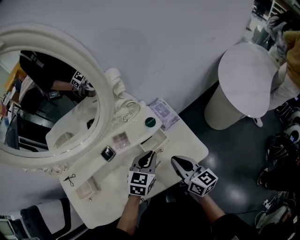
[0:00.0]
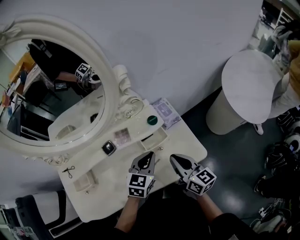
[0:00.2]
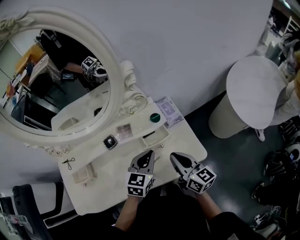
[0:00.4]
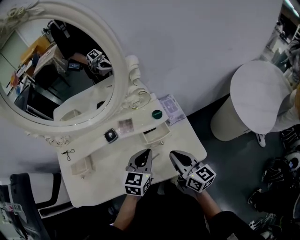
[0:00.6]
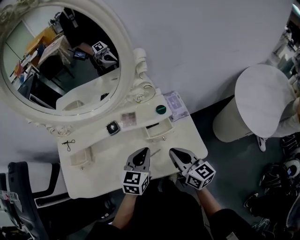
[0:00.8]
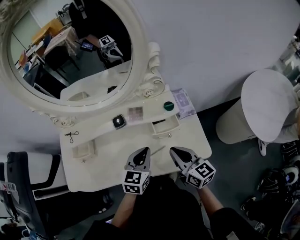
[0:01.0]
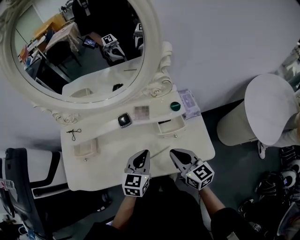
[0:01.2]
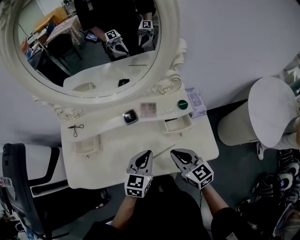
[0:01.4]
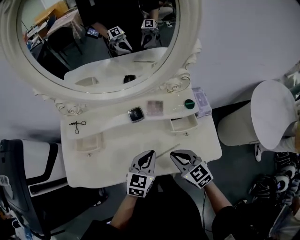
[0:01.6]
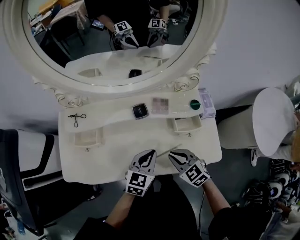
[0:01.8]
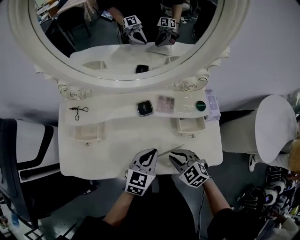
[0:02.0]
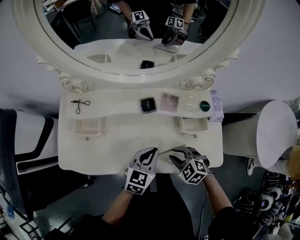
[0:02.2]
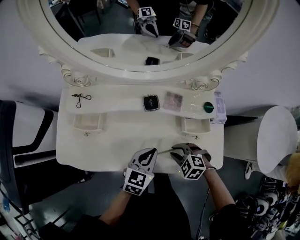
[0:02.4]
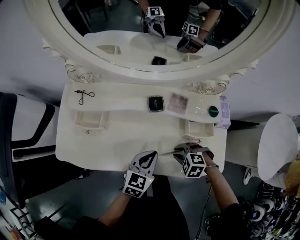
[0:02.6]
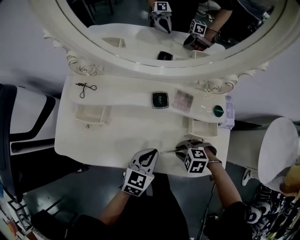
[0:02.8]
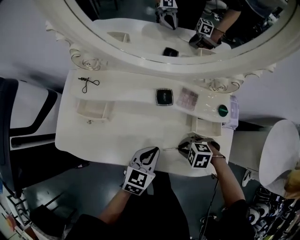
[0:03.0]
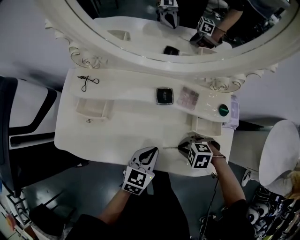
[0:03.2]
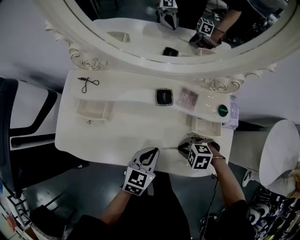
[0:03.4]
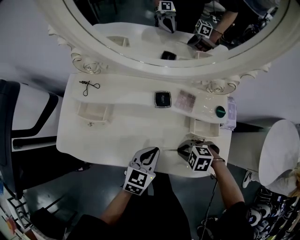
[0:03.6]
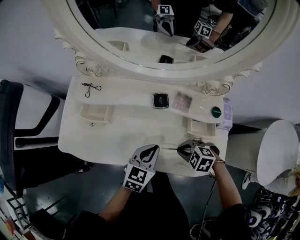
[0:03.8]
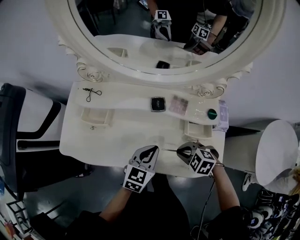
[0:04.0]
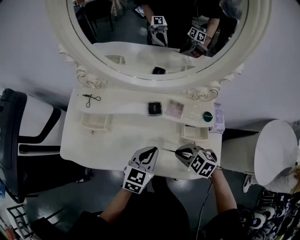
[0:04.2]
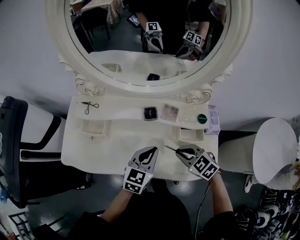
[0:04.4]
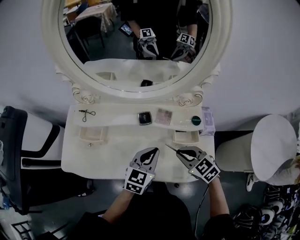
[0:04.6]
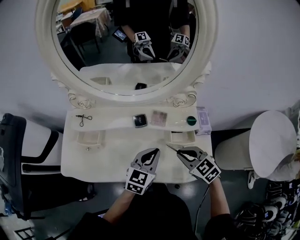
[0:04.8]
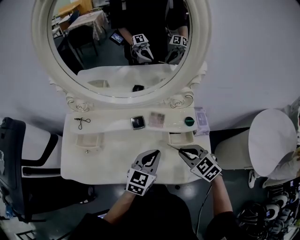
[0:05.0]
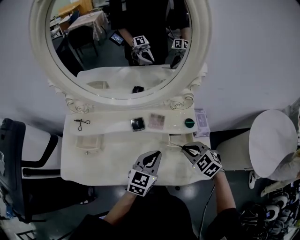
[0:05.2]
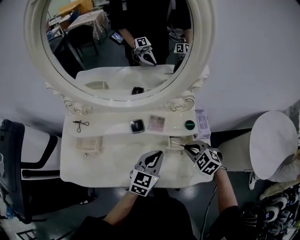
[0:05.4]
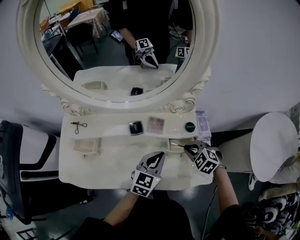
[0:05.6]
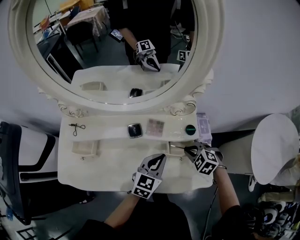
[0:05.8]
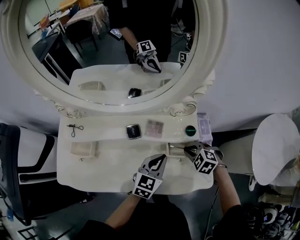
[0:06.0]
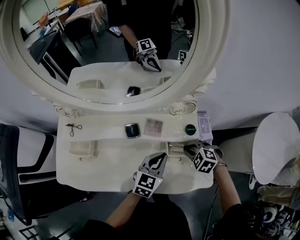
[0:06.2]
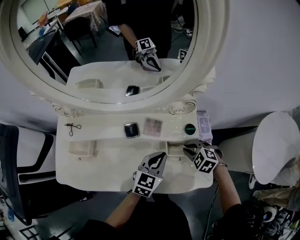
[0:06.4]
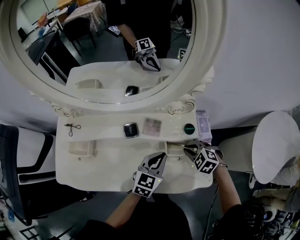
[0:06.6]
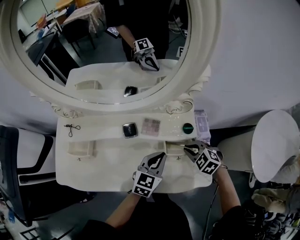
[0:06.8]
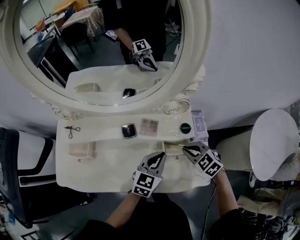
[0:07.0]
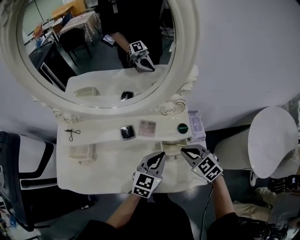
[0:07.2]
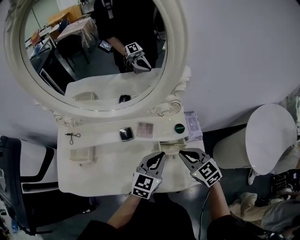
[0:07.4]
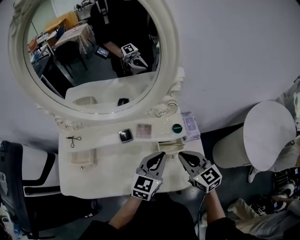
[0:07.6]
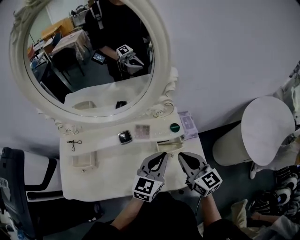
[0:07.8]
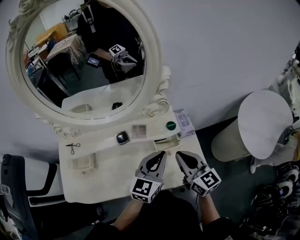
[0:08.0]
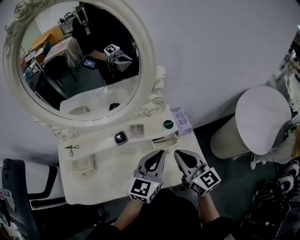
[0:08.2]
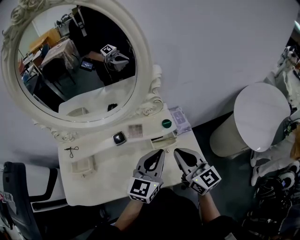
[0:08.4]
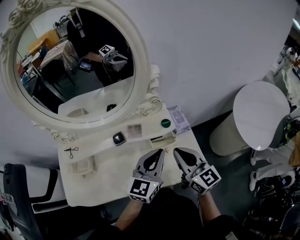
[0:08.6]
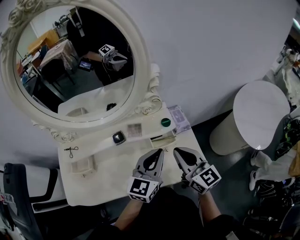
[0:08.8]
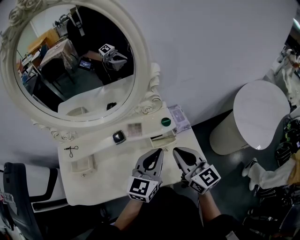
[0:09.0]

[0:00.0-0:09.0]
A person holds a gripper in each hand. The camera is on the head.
0:00.0 to 0:01.6: The left gripper shifts by approximately 15 cm, and swivels about 20 degrees, while the right gripper changes place by about 15 cm, and rotates some 50 degrees.
0:01.6 to 0:03.0: The right gripper travels downward by approximately 15 cm, and angles its fingers downward, by about 40 degrees, while the left gripper moves downward, approximately 5 cm.
0:03.0 to 0:04.4: The left gripper shifts about 10 cm upward, while the right gripper shifts approximately 15 cm upward, and swivels roughly 40 degrees.
0:04.4 to 0:06.0: The right gripper heads to the right, forward and downward, covering approximately 15 cm, and turns by some 20 degrees. Meanwhile the left gripper travels to the right by approximately 10 cm.
0:06.0 to 0:07.6: The right gripper shifts approximately 15 cm upward and backward, and tips its fingers upward by approximately 40 degrees; the left gripper heads upward, covering some 10 cm.
0:07.6 to 0:09.0: Both grippers travel together upward, roughly 5 cm. The right gripper rotates approximately 20 degrees.

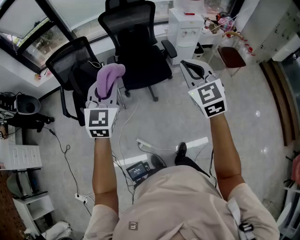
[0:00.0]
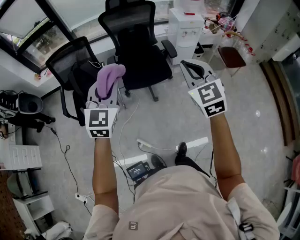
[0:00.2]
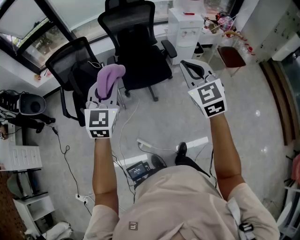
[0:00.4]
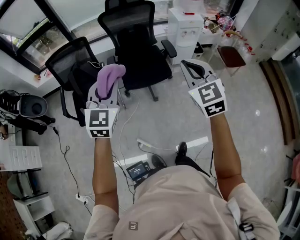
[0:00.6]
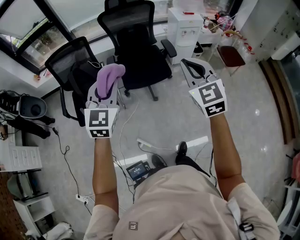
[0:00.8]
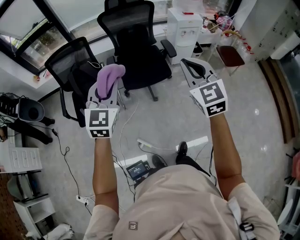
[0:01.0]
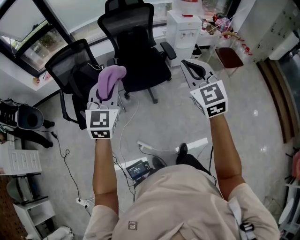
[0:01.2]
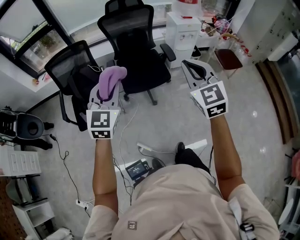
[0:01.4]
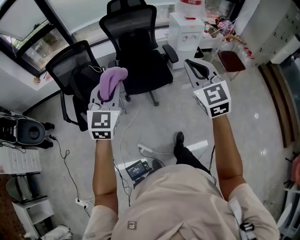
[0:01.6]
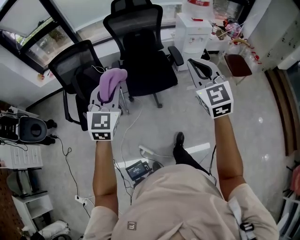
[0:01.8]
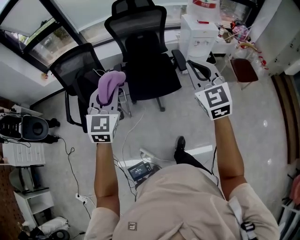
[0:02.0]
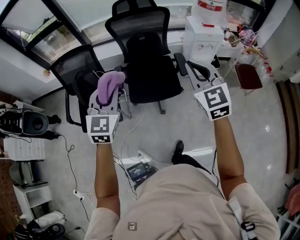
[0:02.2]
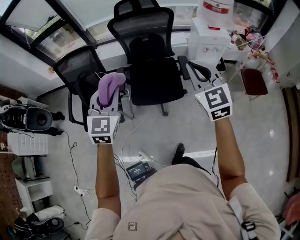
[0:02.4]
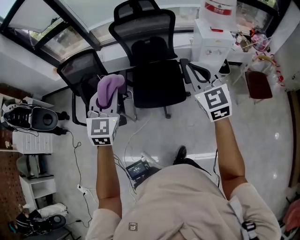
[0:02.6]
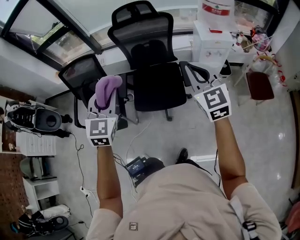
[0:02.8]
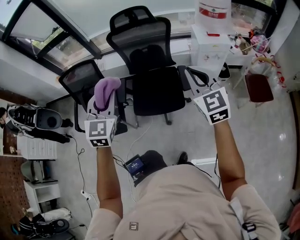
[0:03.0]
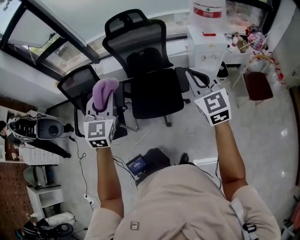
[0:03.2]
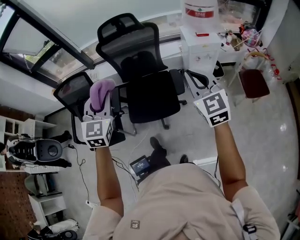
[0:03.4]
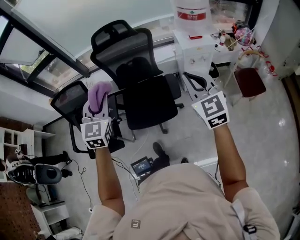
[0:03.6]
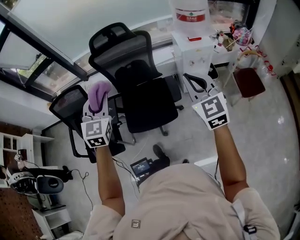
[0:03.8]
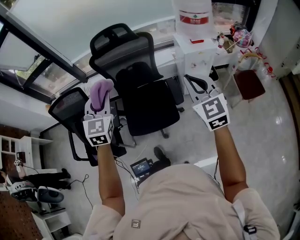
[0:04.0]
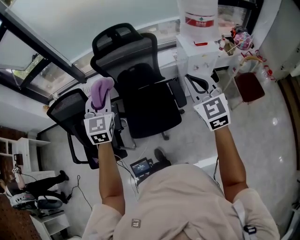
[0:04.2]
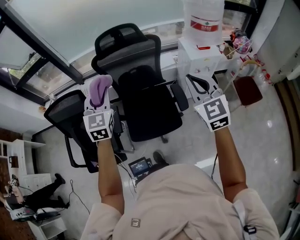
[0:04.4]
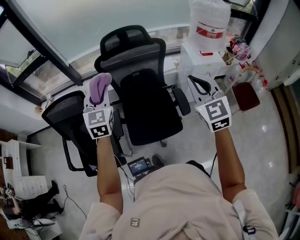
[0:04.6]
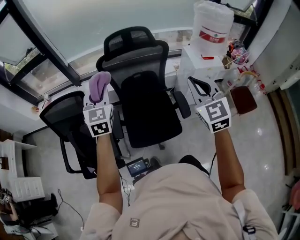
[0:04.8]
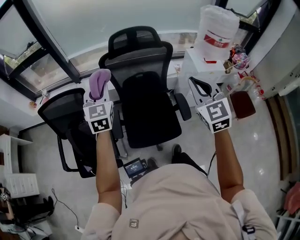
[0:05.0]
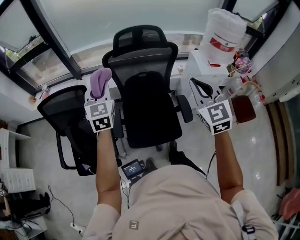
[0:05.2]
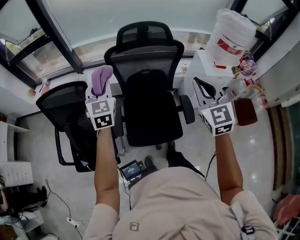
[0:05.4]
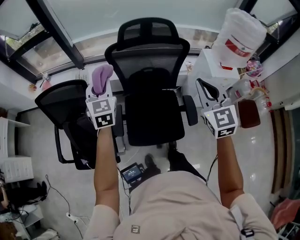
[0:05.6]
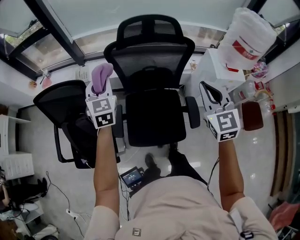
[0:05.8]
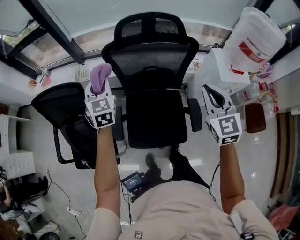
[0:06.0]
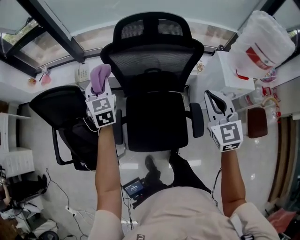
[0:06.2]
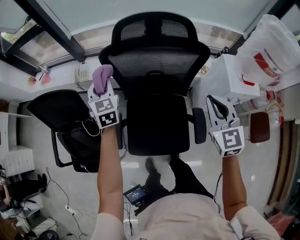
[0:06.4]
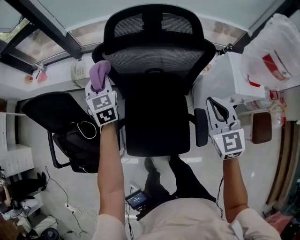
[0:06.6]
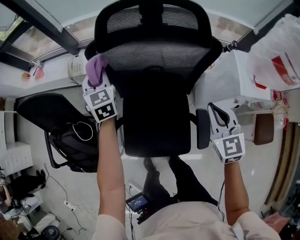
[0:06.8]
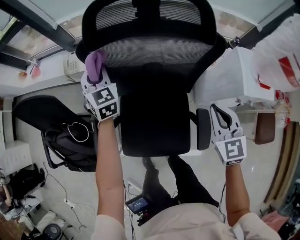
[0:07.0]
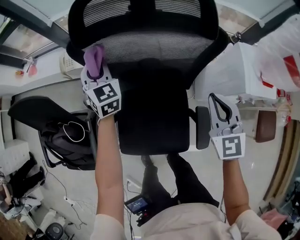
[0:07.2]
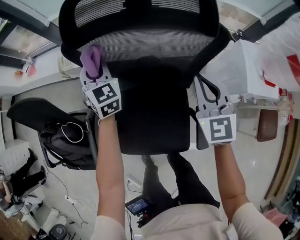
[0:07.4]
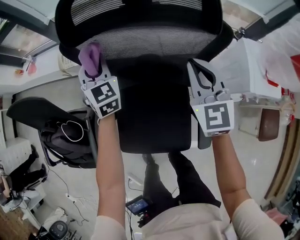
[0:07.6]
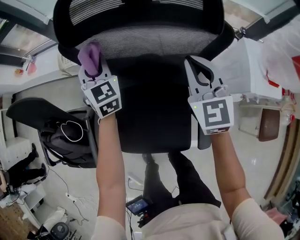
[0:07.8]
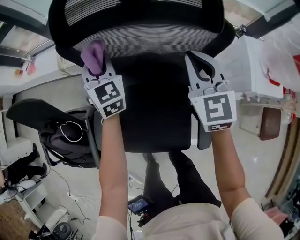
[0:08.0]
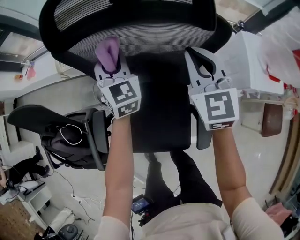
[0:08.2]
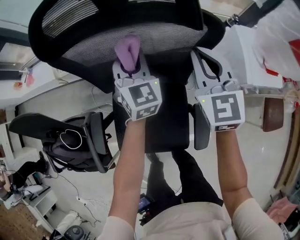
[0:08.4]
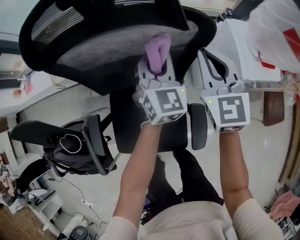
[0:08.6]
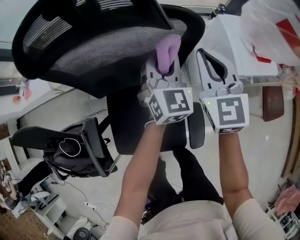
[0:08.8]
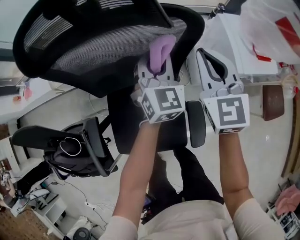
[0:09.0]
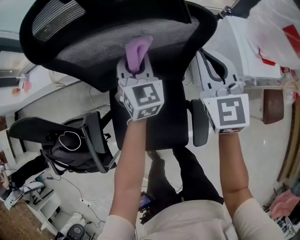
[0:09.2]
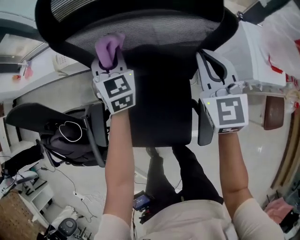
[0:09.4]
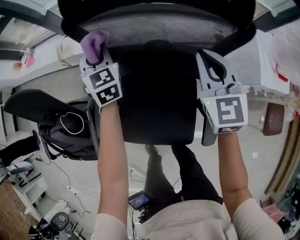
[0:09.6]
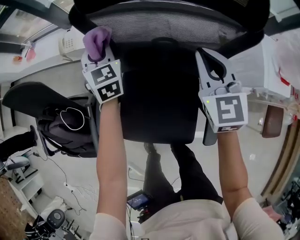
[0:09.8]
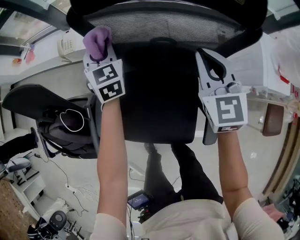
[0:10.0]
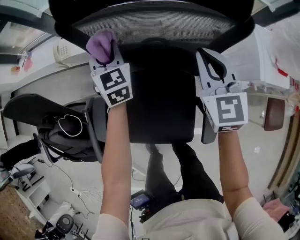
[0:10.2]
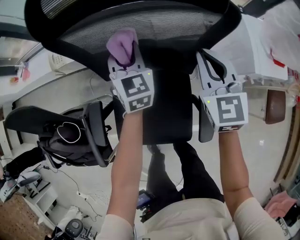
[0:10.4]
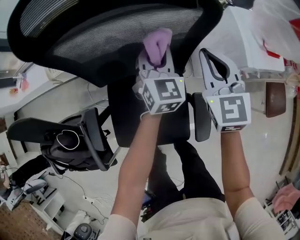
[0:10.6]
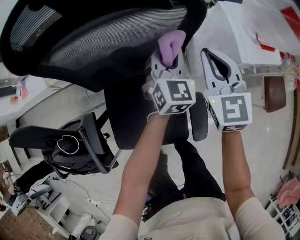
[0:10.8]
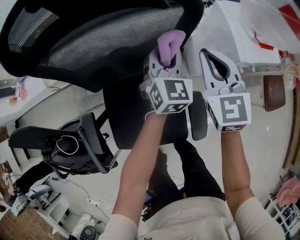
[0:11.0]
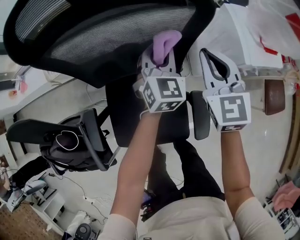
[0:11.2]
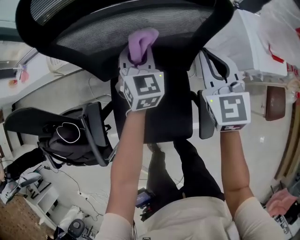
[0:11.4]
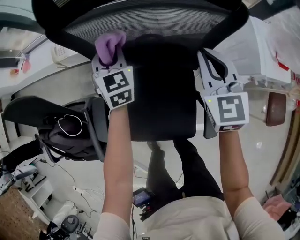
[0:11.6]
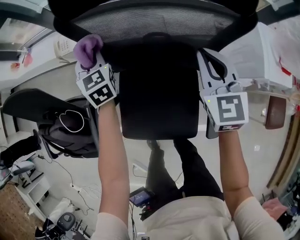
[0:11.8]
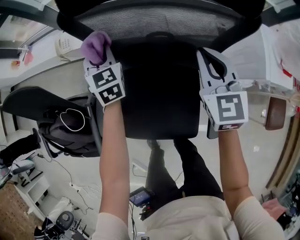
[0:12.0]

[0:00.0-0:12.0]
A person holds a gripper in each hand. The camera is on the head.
0:00.0 to 0:01.6: The grippers stay close to where they were, moving slightly.
0:01.6 to 0:03.0: The two grippers go roughly 30 cm forward and to the right.
0:03.0 to 0:04.4: The right gripper is displaced forward by about 15 cm. The left gripper travels forward by about 25 cm.
0:04.4 to 0:06.0: The right gripper is displaced forward and downward by approximately 25 cm. The left gripper is displaced forward, downward and to the left by approximately 30 cm.
0:06.0 to 0:07.6: The right gripper goes roughly 30 cm forward and downward. The left gripper shifts roughly 25 cm downward, forward and to the right.
0:07.6 to 0:09.0: The right gripper moves to the right, about 15 cm; the left gripper shifts some 35 cm to the right, and rotates some 30 degrees.
0:09.0 to 0:10.4: The left gripper goes about 15 cm to the left. The right gripper travels to the left by about 10 cm.
0:10.4 to 0:12.0: The left gripper changes place by roughly 20 cm, while the right gripper moves approximately 10 cm.

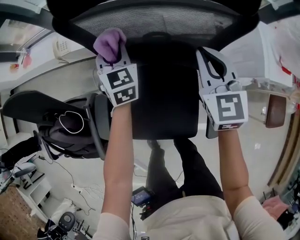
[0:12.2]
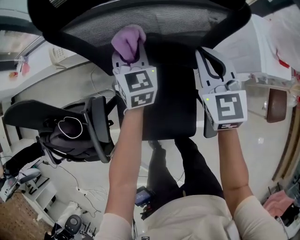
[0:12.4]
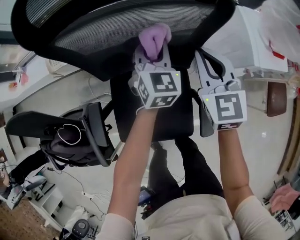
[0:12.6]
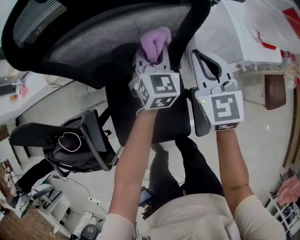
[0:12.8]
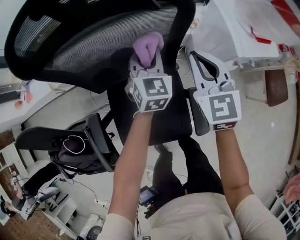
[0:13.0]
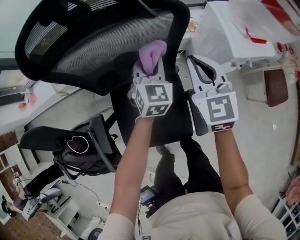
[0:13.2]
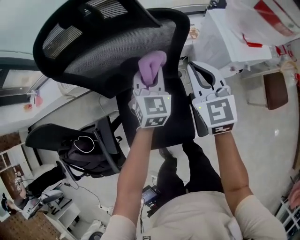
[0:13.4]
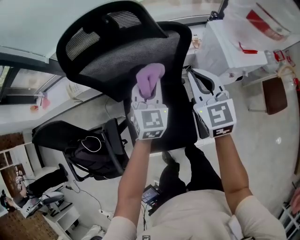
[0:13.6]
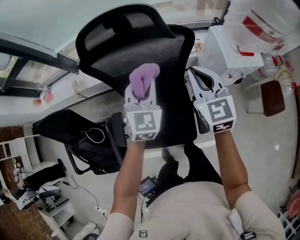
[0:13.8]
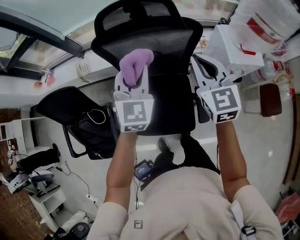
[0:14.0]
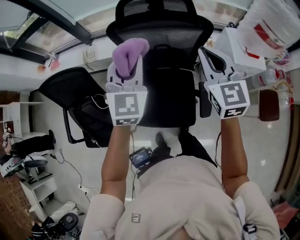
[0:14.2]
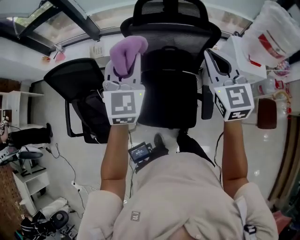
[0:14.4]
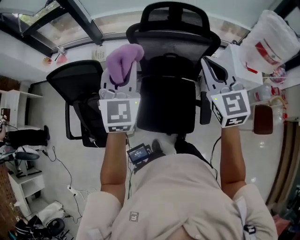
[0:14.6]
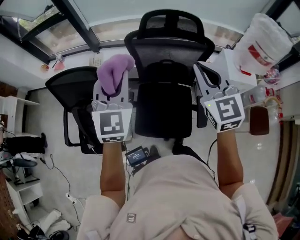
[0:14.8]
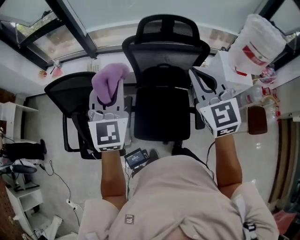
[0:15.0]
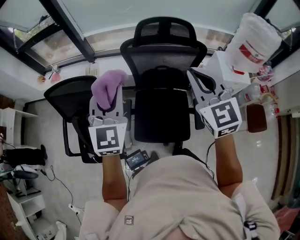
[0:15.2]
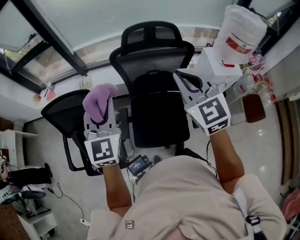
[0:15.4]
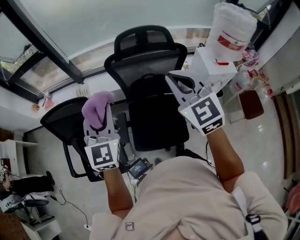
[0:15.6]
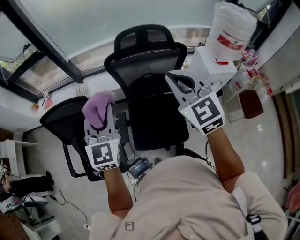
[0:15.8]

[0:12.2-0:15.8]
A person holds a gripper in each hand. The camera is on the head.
0:12.2 to 0:14.0: The left gripper is displaced upward, backward and to the right by about 35 cm, and swivels some 30 degrees. The right gripper is displaced upward and backward by roughly 25 cm.
0:14.0 to 0:15.8: The left gripper moves to the left, backward and upward, approximately 30 cm. The right gripper goes roughly 25 cm to the left, upward and backward.
